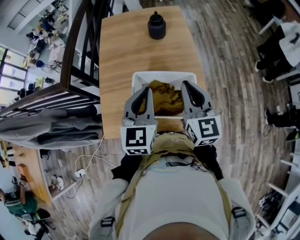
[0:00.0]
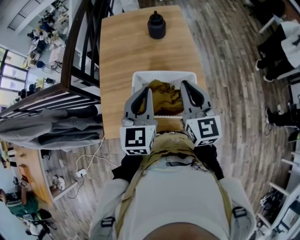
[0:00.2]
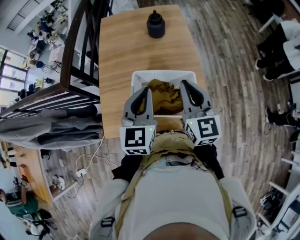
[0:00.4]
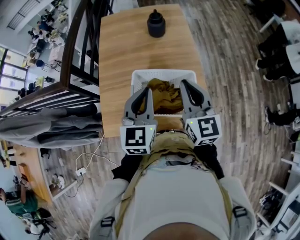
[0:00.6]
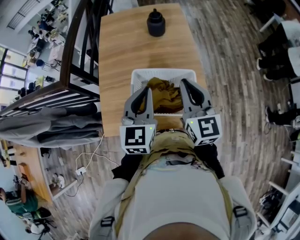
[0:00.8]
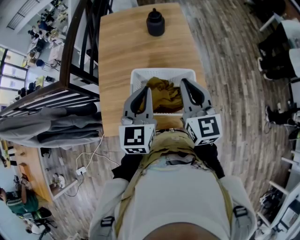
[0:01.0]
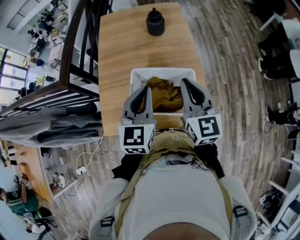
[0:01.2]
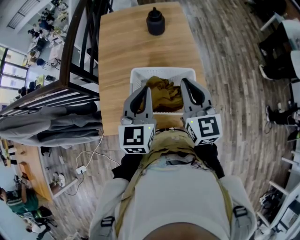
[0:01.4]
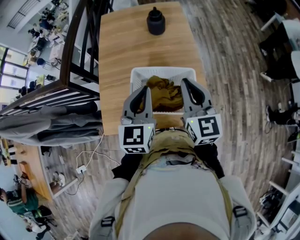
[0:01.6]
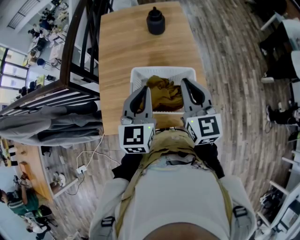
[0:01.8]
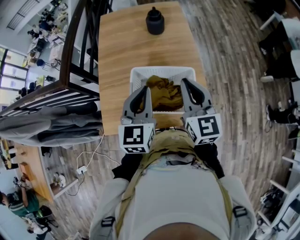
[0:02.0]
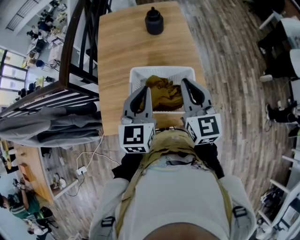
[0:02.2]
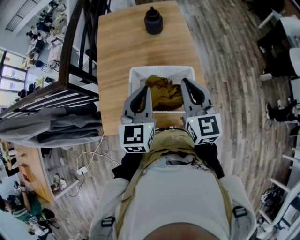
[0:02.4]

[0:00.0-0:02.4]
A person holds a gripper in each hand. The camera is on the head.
0:00.0 to 0:01.2: Both grippers stay put.
0:01.2 to 0:02.4: Both grippers stay about where they are.

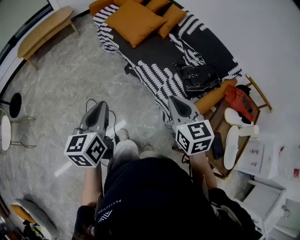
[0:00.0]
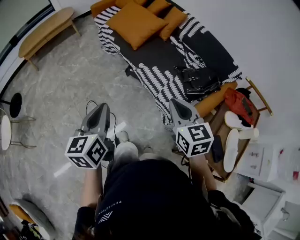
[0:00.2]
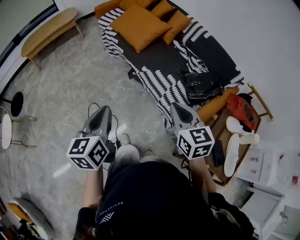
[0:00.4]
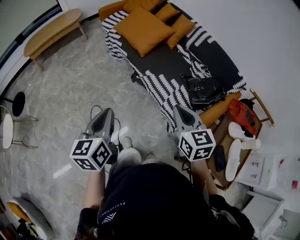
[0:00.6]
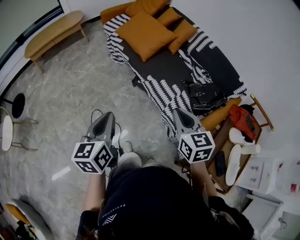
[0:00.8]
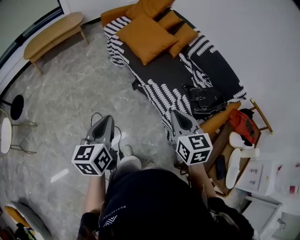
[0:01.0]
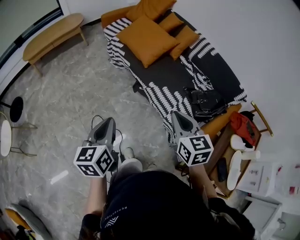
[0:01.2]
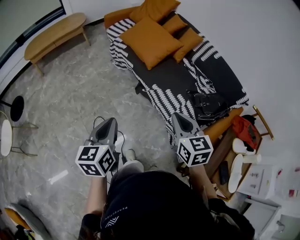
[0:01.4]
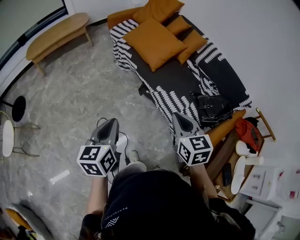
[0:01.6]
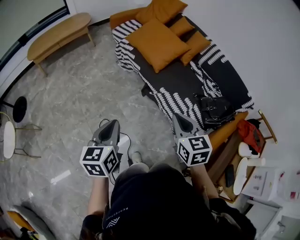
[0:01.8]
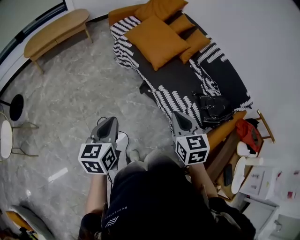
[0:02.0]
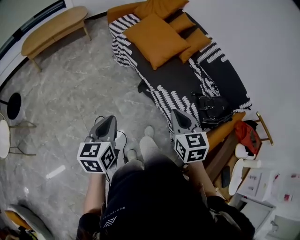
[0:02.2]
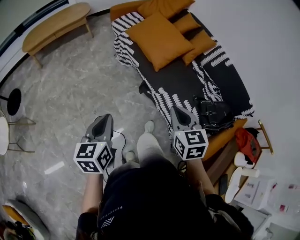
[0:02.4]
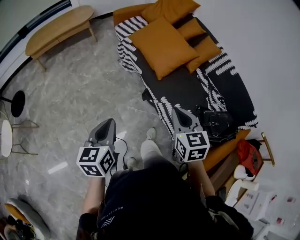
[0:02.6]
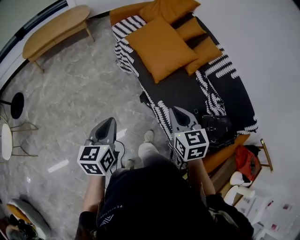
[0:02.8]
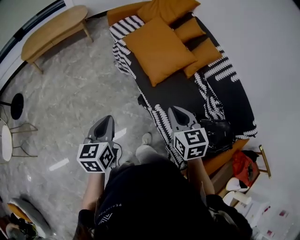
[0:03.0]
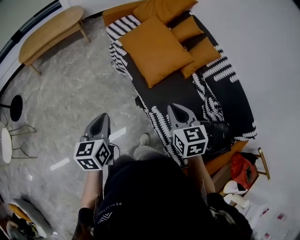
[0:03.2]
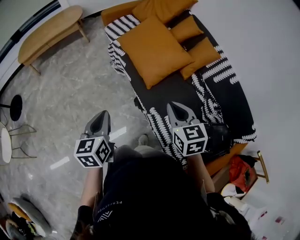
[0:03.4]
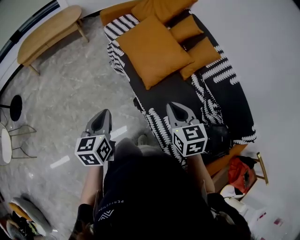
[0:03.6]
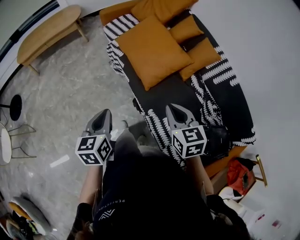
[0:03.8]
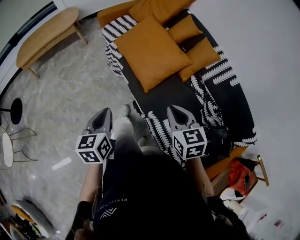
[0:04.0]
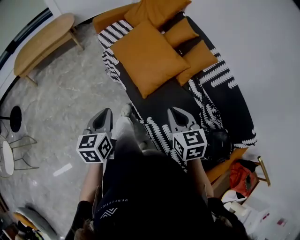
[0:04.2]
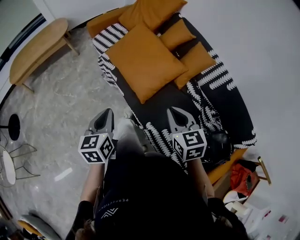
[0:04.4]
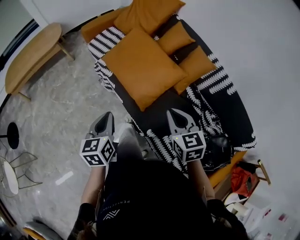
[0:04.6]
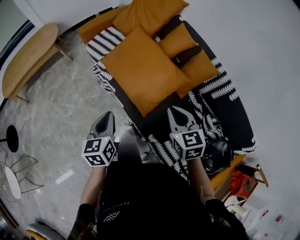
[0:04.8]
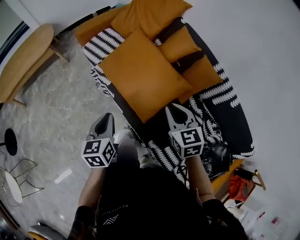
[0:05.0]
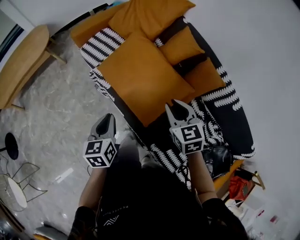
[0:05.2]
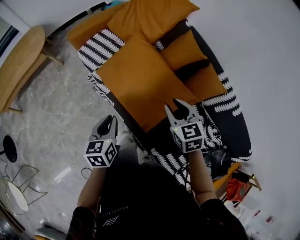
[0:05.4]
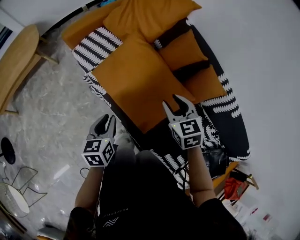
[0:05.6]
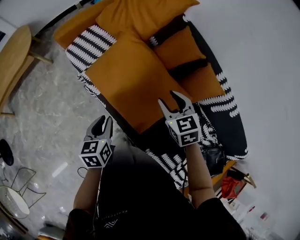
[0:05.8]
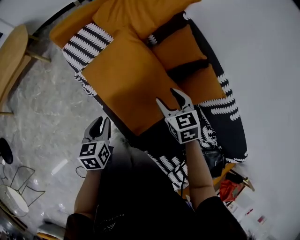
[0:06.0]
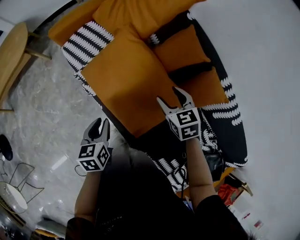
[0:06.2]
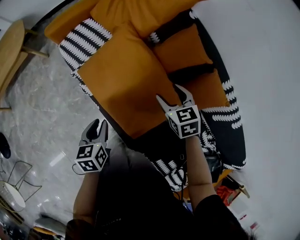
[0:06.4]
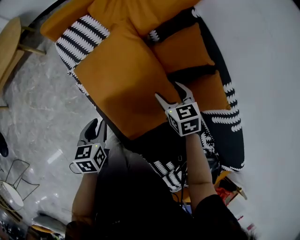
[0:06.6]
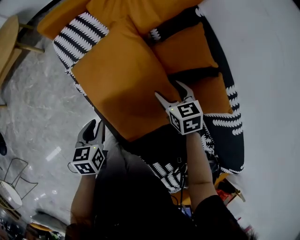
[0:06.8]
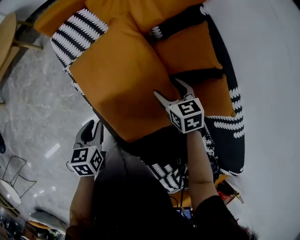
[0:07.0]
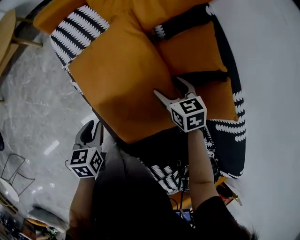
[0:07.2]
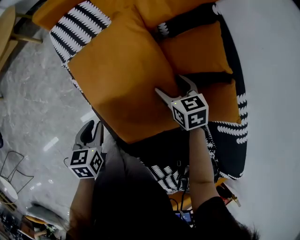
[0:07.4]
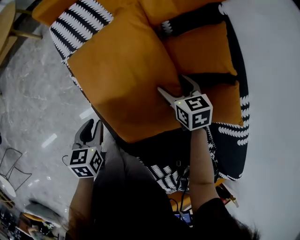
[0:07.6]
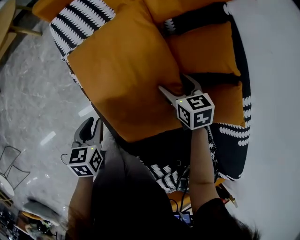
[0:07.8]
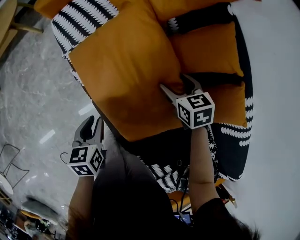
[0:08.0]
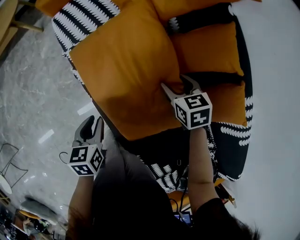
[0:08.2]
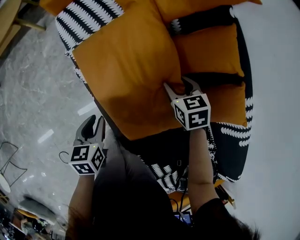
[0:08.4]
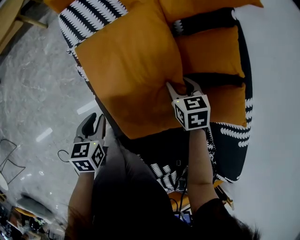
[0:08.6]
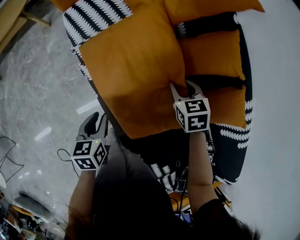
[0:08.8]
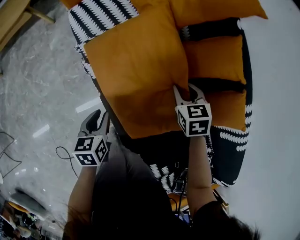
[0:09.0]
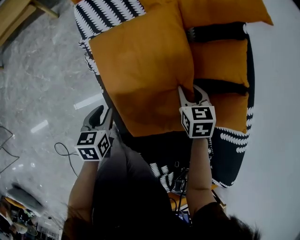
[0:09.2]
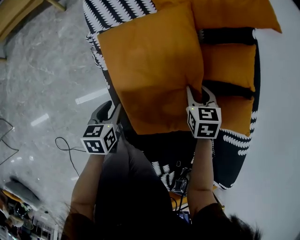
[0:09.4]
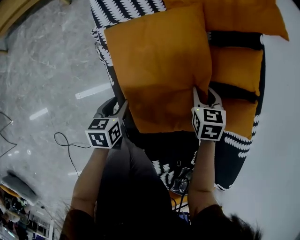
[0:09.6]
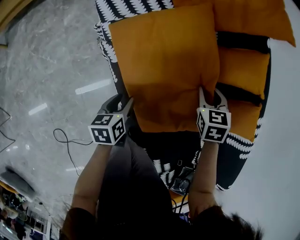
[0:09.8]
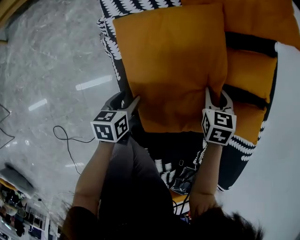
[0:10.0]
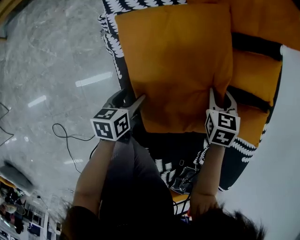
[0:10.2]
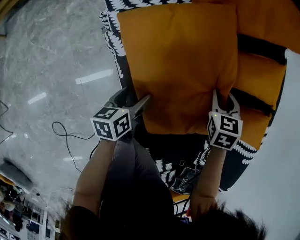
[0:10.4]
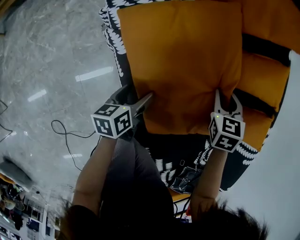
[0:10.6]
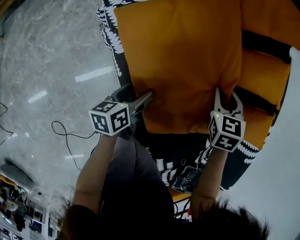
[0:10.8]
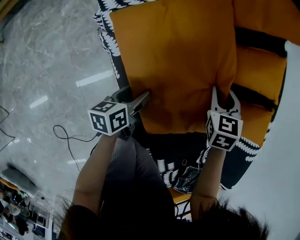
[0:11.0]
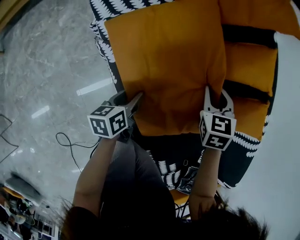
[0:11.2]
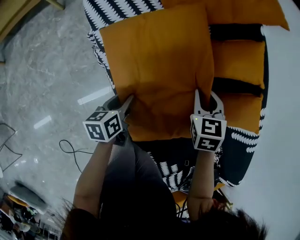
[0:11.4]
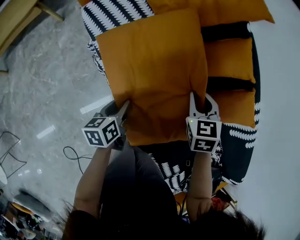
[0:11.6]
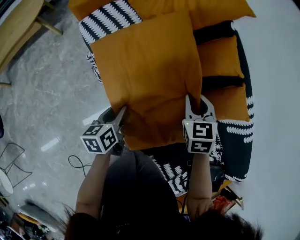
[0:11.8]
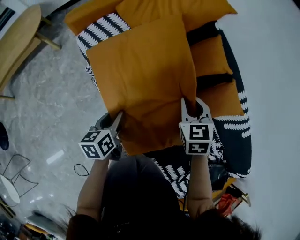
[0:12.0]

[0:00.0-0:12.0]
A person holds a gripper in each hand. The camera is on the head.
0:00.0 to 0:01.6: Both grippers move to the left and forward, about 15 cm.
0:01.6 to 0:03.0: Both grippers move forward, roughly 25 cm.
0:03.0 to 0:04.4: The two grippers go roughly 15 cm forward and to the right.
0:04.4 to 0:06.0: The left gripper goes about 30 cm forward and downward; the right gripper moves forward, about 35 cm, and opens.
0:06.0 to 0:07.6: The left gripper heads downward, covering approximately 10 cm. Meanwhile the right gripper heads downward and forward, covering approximately 20 cm.
0:07.6 to 0:09.0: The right gripper closes its fingers.
0:09.0 to 0:10.4: The left gripper goes approximately 10 cm downward, swivels about 30 degrees, and opens up.
0:10.4 to 0:12.0: The grippers both shift upward by some 15 cm. The left gripper closes its fingers.

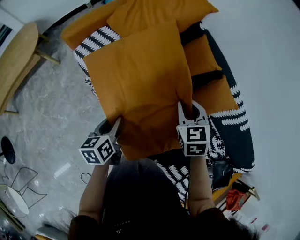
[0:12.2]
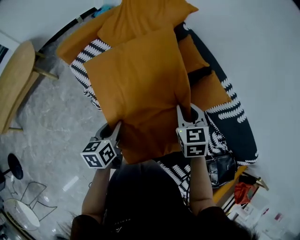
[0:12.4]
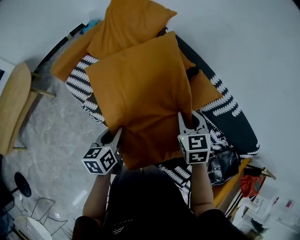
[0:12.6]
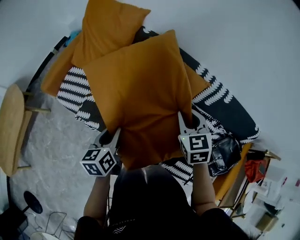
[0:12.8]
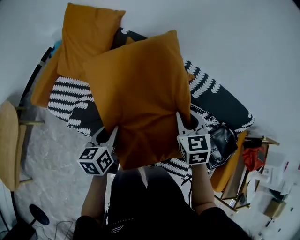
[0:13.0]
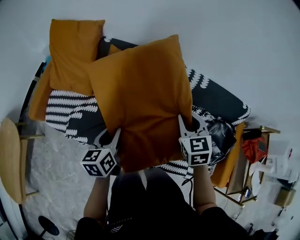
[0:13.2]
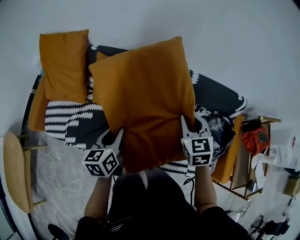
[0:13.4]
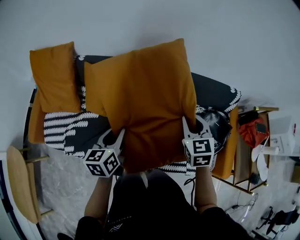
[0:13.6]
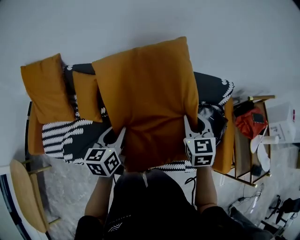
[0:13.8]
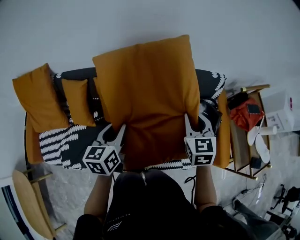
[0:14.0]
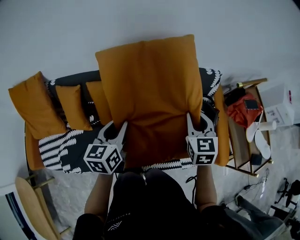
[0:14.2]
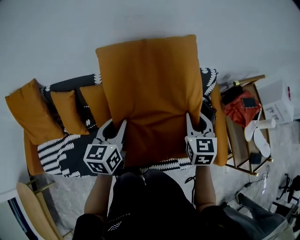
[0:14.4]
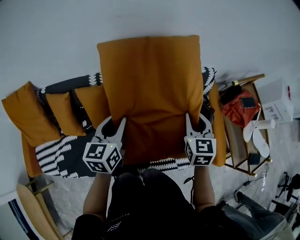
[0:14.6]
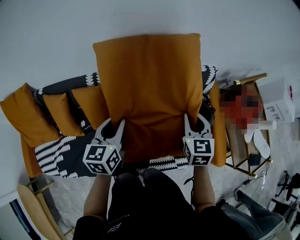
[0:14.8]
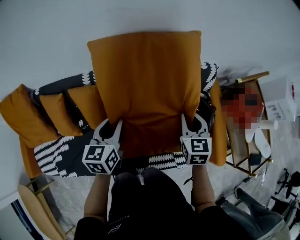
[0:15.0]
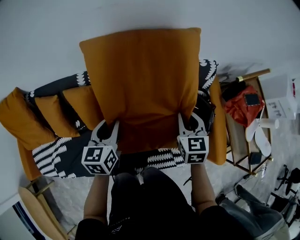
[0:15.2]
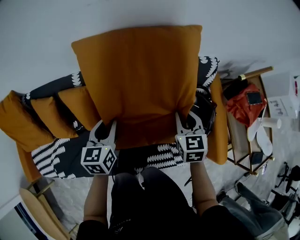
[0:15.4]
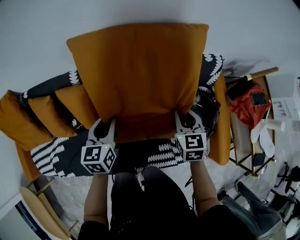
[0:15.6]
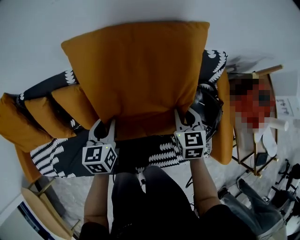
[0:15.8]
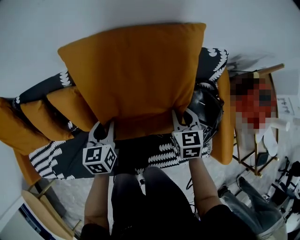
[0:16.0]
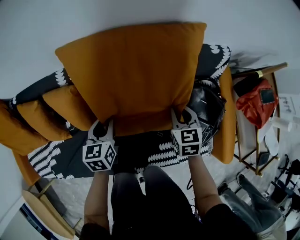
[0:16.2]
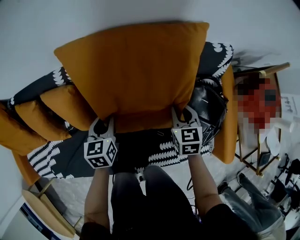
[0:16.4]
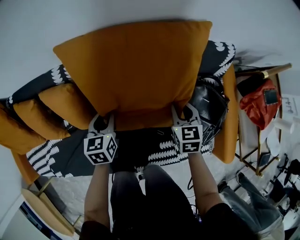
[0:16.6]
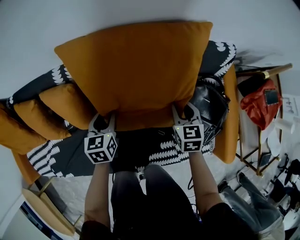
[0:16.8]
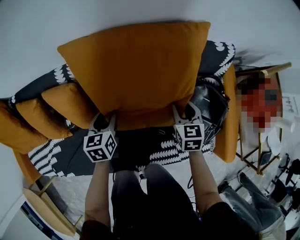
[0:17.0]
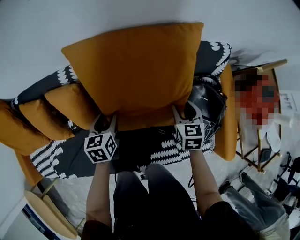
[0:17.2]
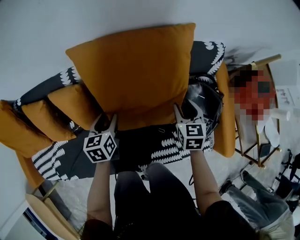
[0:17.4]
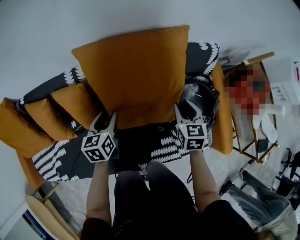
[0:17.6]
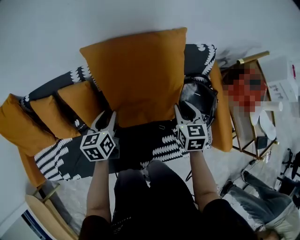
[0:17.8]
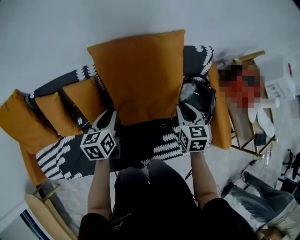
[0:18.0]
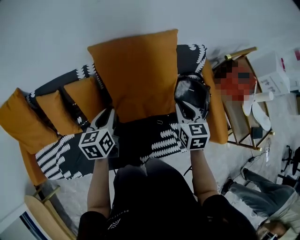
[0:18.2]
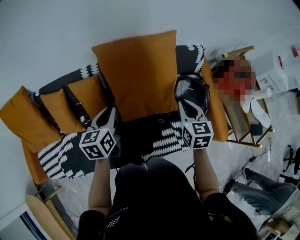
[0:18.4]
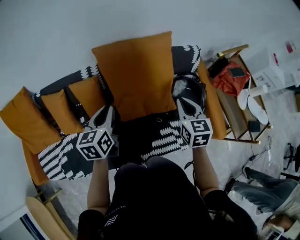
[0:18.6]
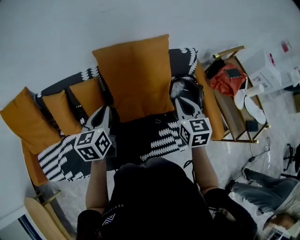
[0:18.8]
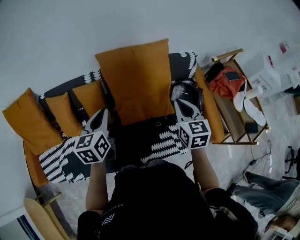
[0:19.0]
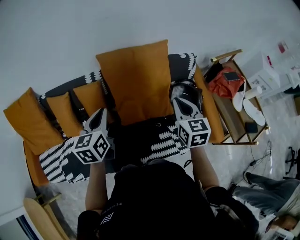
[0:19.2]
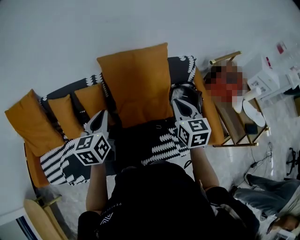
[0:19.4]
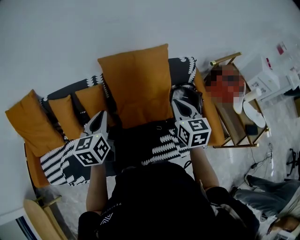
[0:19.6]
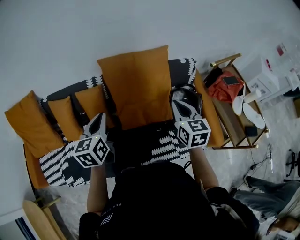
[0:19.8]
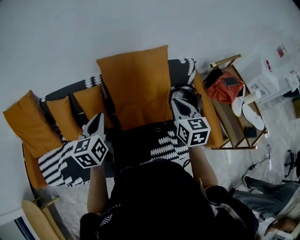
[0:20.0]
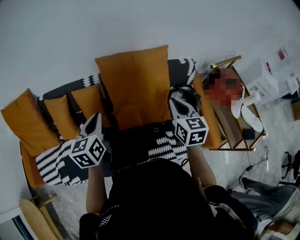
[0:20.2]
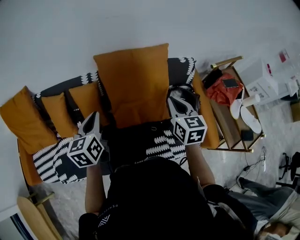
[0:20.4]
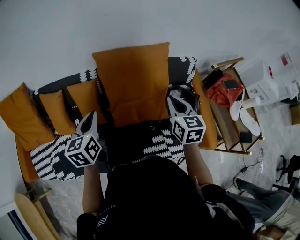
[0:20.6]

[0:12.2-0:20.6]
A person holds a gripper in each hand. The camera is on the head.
0:12.2 to 0:13.6: The left gripper ends up roughly 35 cm from where it was, and swivels about 50 degrees, while the right gripper shifts by some 40 cm, and swivels about 50 degrees.
0:13.6 to 0:15.0: The right gripper heads to the right, covering approximately 20 cm, and turns by about 20 degrees, while the left gripper is displaced to the right and forward by about 25 cm.
0:15.0 to 0:16.4: Both grippers move downward, some 20 cm.
0:16.4 to 0:17.8: The grippers both shift upward by about 10 cm.
0:17.8 to 0:19.2: The two grippers go some 20 cm upward and backward. The left gripper closes.
0:19.2 to 0:20.6: The right gripper ends up some 5 cm from where it was.

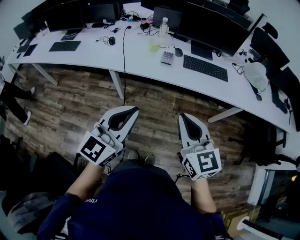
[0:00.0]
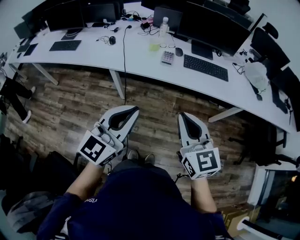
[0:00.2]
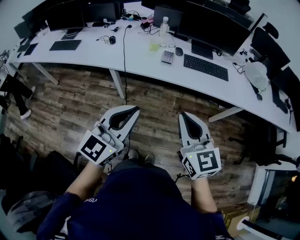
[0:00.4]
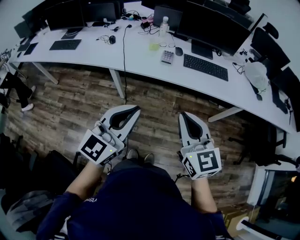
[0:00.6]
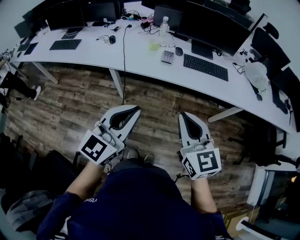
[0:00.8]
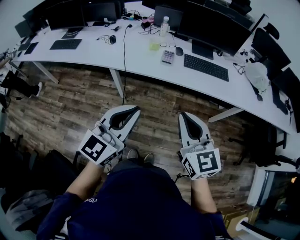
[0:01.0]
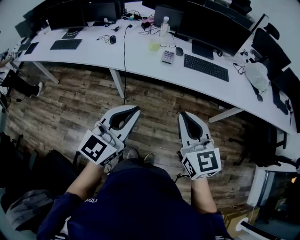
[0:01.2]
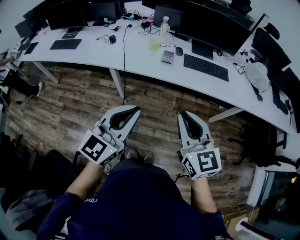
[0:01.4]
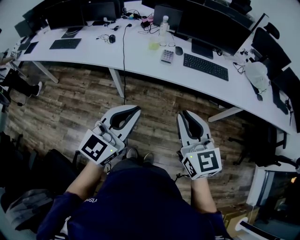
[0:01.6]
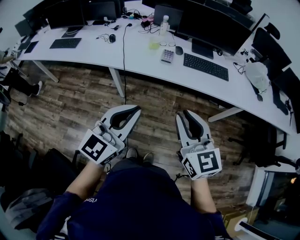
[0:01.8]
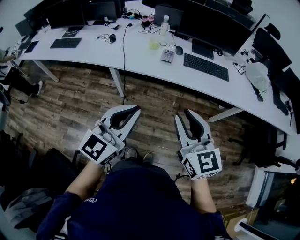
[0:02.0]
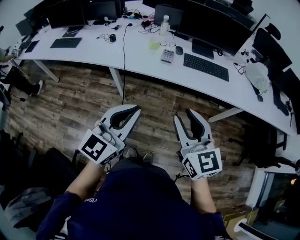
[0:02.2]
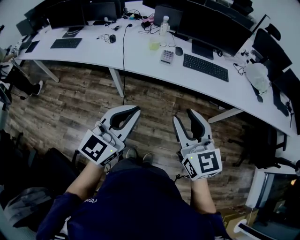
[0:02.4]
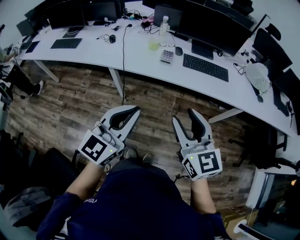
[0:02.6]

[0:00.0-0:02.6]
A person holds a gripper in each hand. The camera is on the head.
0:00.0 to 0:01.2: Neither gripper changes place.
0:01.2 to 0:02.6: The right gripper opens up.
